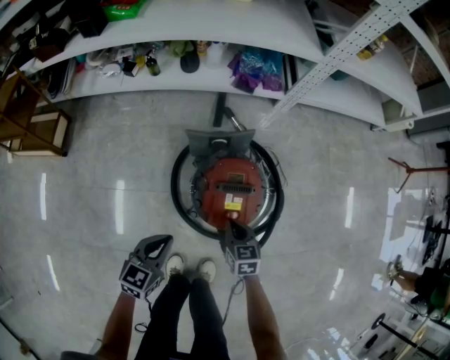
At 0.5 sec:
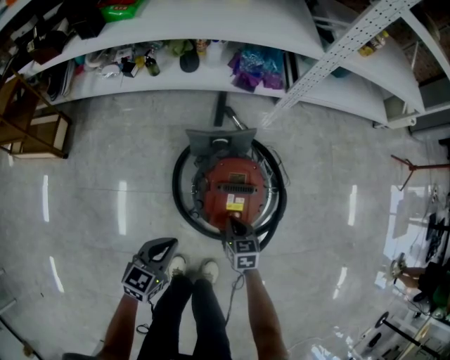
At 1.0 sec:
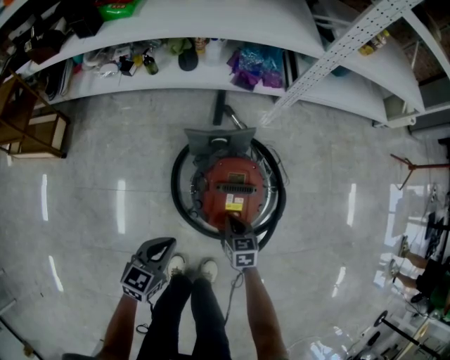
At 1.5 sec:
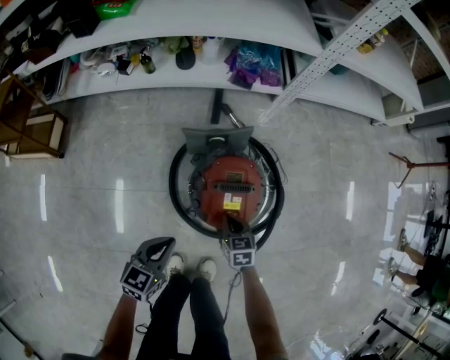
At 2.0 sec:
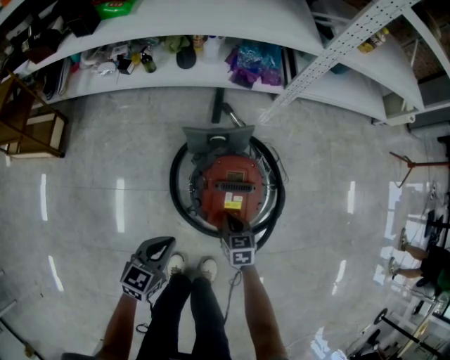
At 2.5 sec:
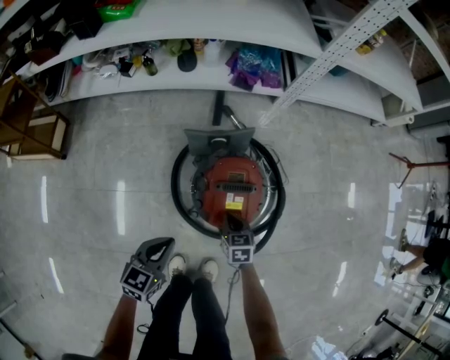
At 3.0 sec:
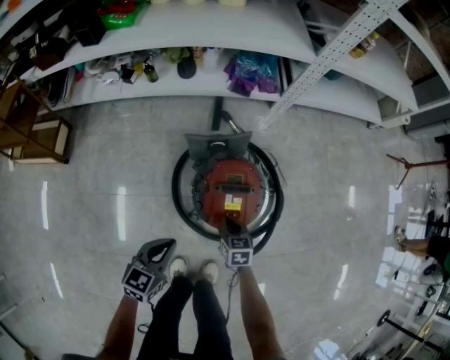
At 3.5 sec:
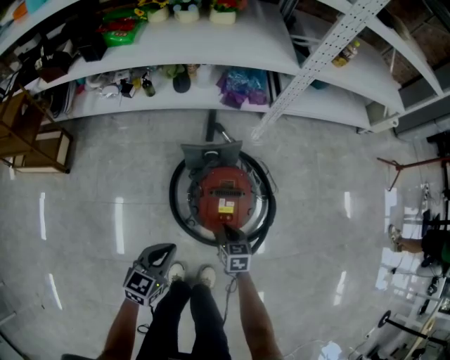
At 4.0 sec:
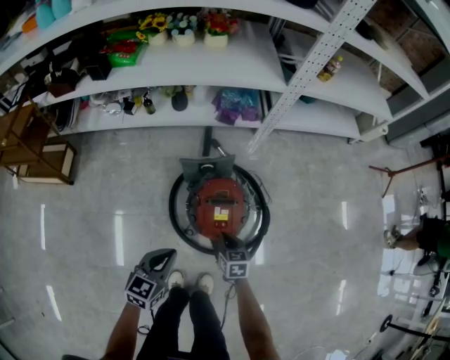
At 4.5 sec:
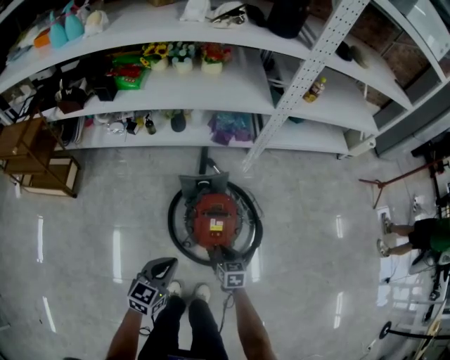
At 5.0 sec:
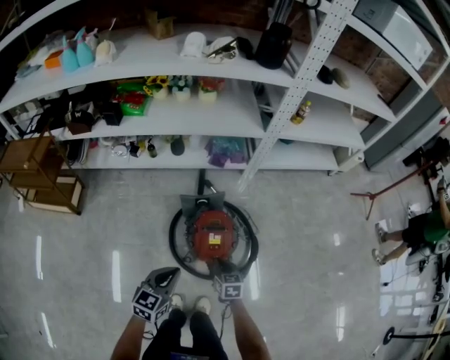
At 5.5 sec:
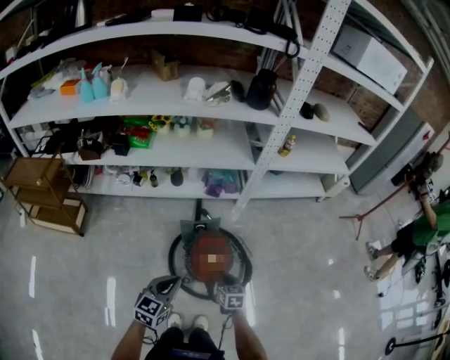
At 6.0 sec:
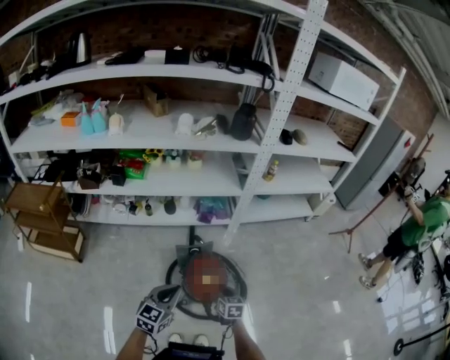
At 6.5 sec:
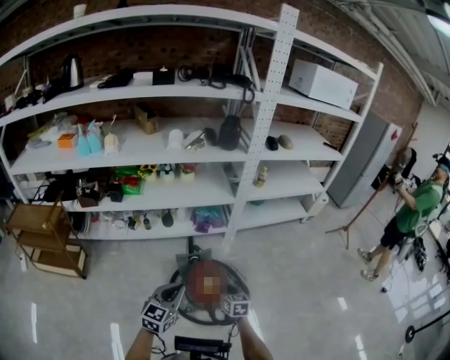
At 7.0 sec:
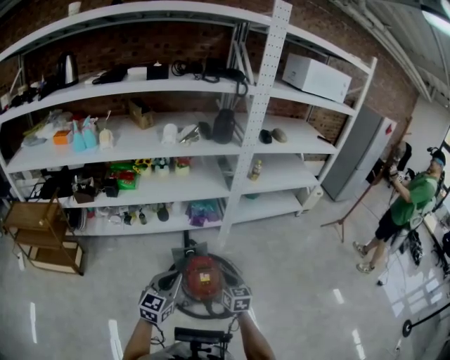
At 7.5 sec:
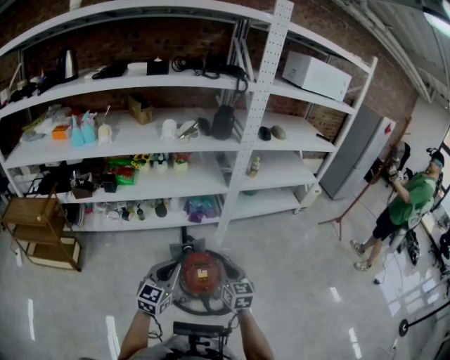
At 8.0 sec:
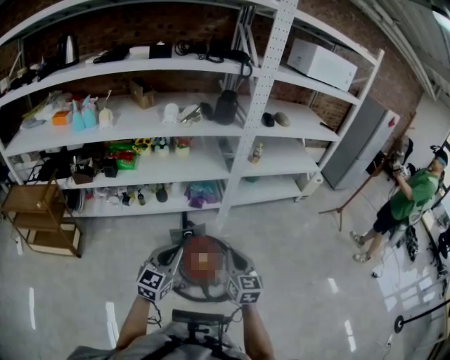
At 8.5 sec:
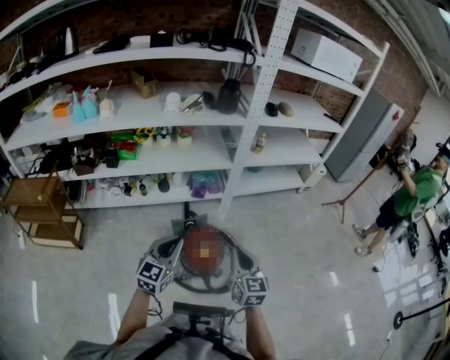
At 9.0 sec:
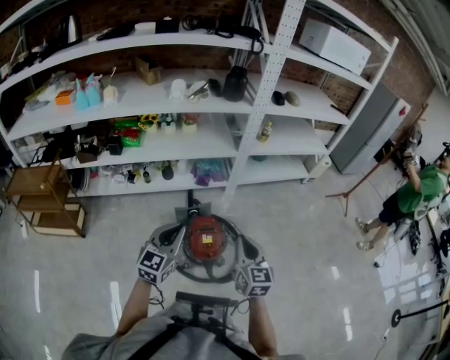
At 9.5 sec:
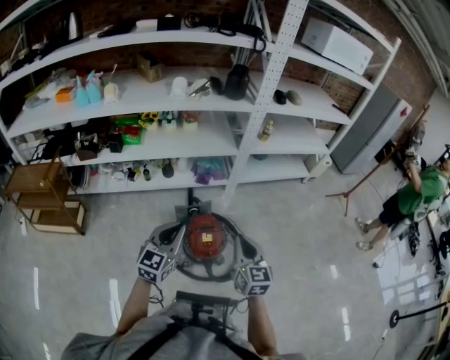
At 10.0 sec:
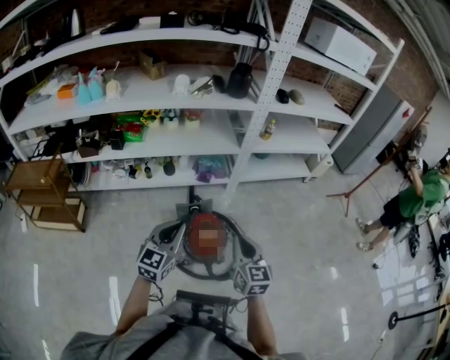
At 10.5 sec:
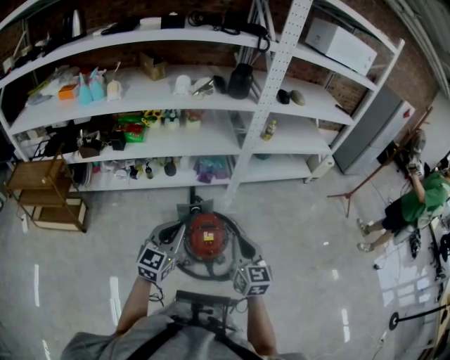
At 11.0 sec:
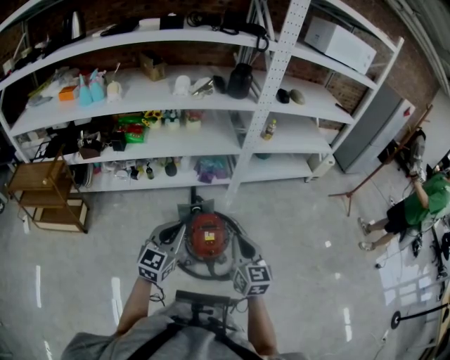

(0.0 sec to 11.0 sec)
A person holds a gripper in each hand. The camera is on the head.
0.0 sec - 2.0 sec: The right gripper travels downward by some 5 cm.
2.0 sec - 3.5 sec: The grippers both shift upward by some 5 cm.
3.5 sec - 5.5 sec: The two grippers go approximately 25 cm upward.
5.5 sec - 7.5 sec: The left gripper shifts about 15 cm upward. Meanwhile the right gripper goes roughly 25 cm upward, and changes its angle by some 30 degrees.
7.5 sec - 9.0 sec: The right gripper is displaced upward by approximately 5 cm.
9.0 sec - 11.0 sec: There are only small adjustments of the grippers.

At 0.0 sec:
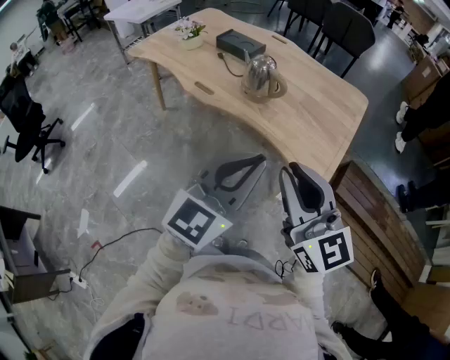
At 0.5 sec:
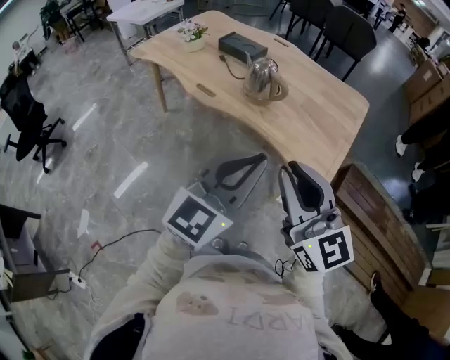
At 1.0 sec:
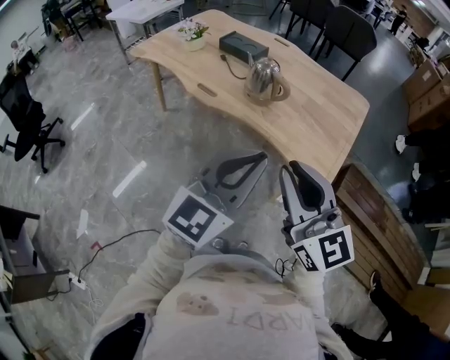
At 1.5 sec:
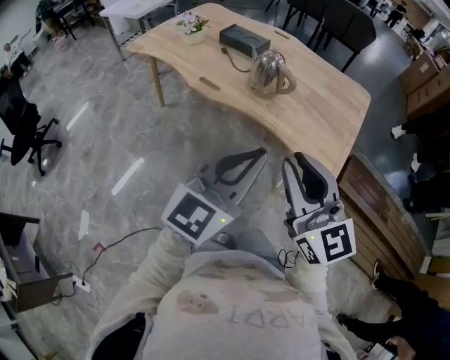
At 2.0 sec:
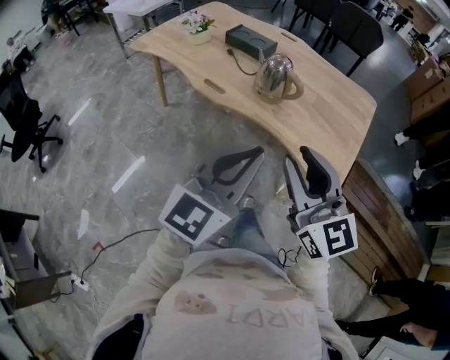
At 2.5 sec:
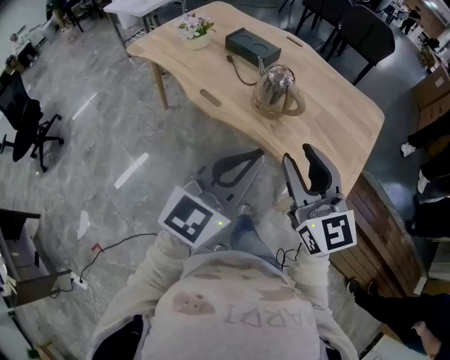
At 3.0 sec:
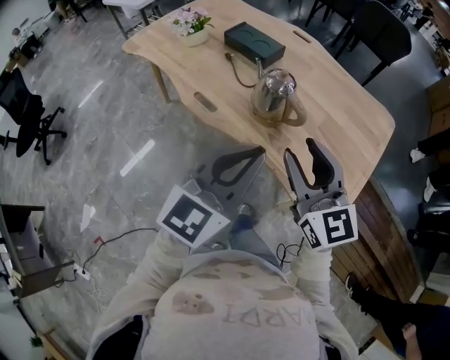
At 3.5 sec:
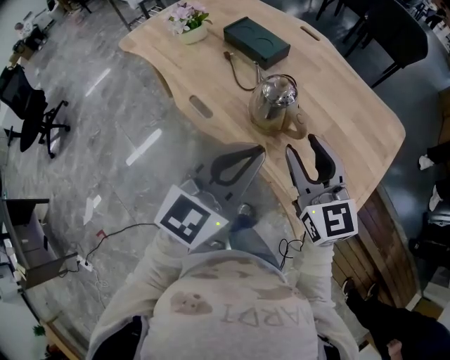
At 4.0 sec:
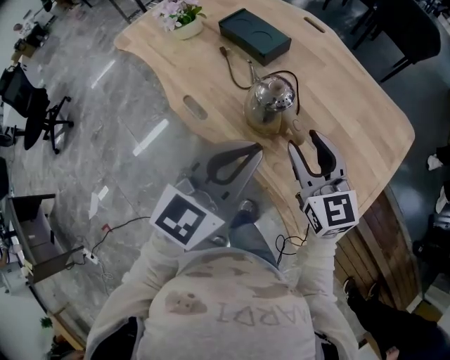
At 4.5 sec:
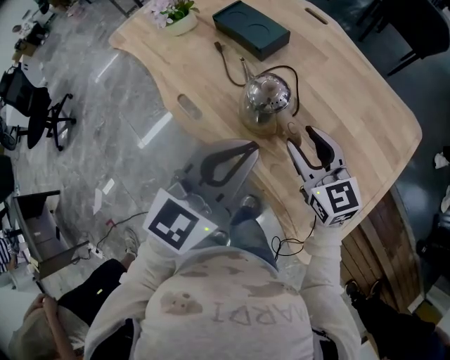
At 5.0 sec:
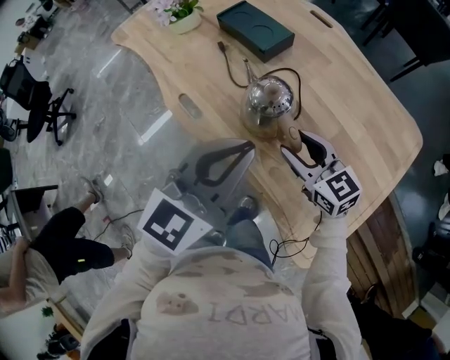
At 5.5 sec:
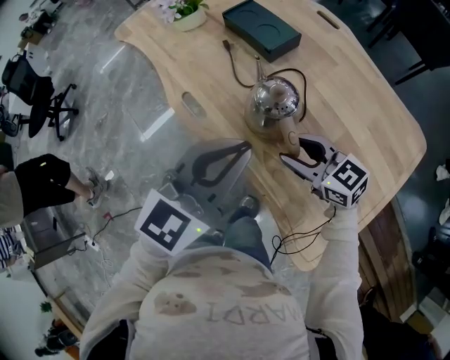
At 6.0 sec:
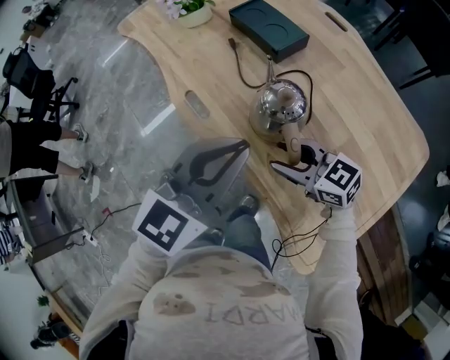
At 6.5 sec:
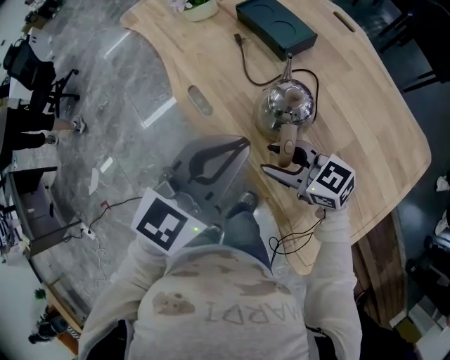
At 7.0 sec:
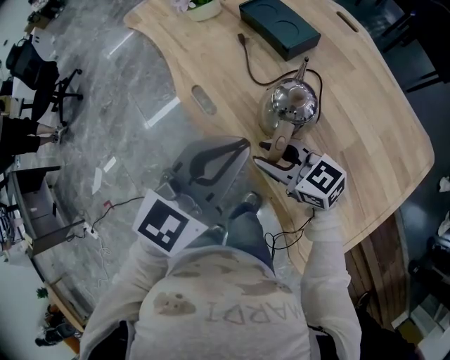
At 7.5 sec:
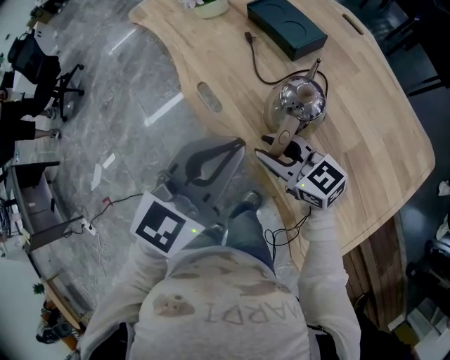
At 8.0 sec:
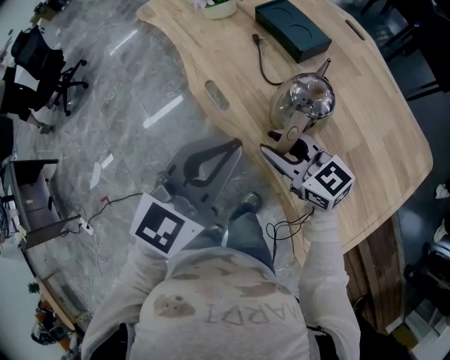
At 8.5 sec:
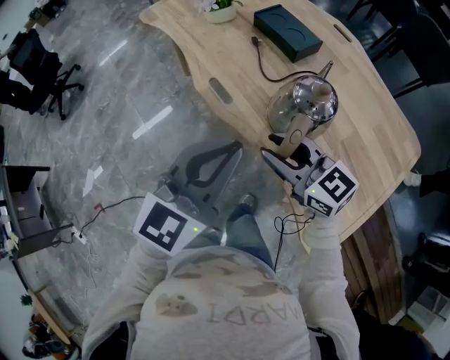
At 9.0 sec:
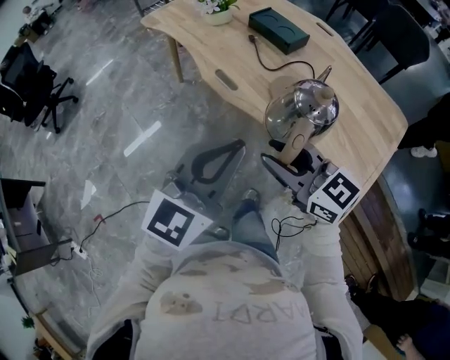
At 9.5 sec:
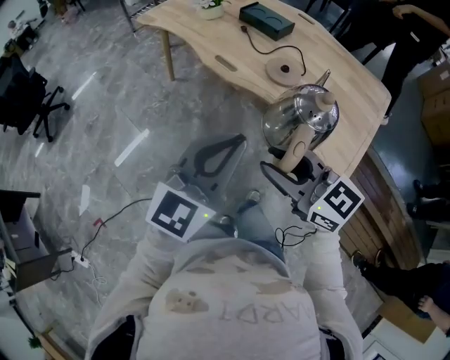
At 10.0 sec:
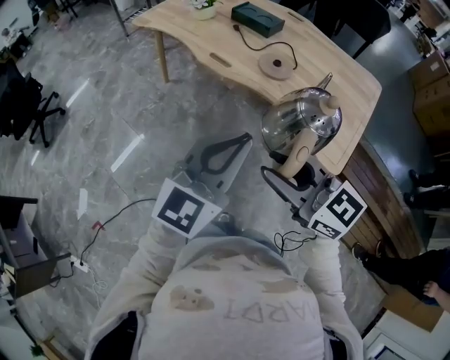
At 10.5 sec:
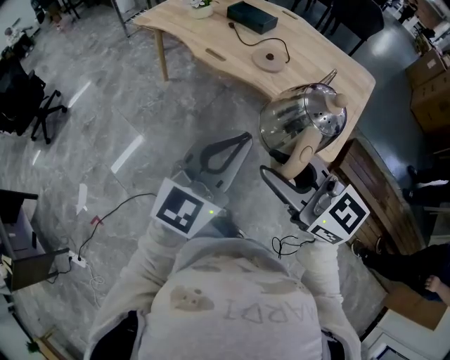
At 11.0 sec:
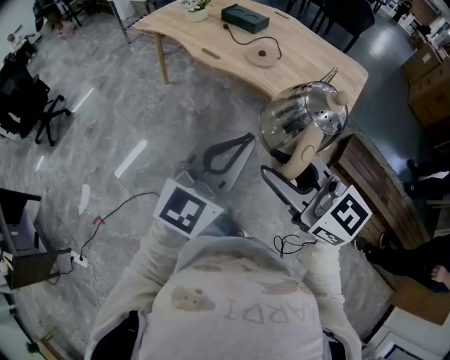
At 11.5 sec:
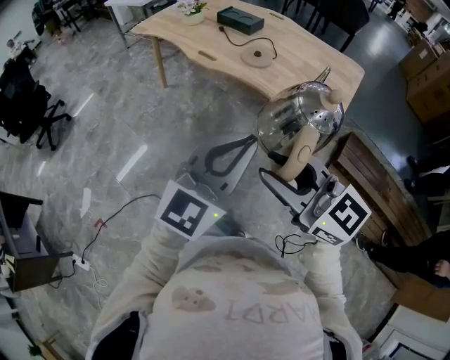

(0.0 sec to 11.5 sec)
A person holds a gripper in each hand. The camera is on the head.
0.0 sec - 2.0 sec: The left gripper is displaced to the left by some 5 cm, while the right gripper shifts some 10 cm to the left and forward.
2.0 sec - 4.0 sec: Both grippers move forward, roughly 35 cm.
4.0 sec - 6.0 sec: The right gripper goes about 10 cm downward, and turns by about 50 degrees. Meanwhile the left gripper ends up about 5 cm from where it was.
6.0 sec - 7.5 sec: The right gripper heads to the left, covering approximately 5 cm.
7.5 sec - 9.5 sec: The left gripper shifts some 35 cm backward and to the left. The right gripper goes about 40 cm backward, to the left and upward.
9.5 sec - 11.5 sec: Both grippers travel together backward, about 20 cm.

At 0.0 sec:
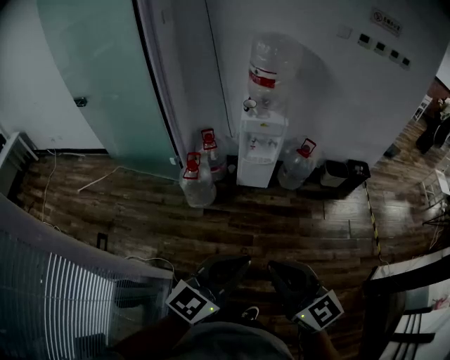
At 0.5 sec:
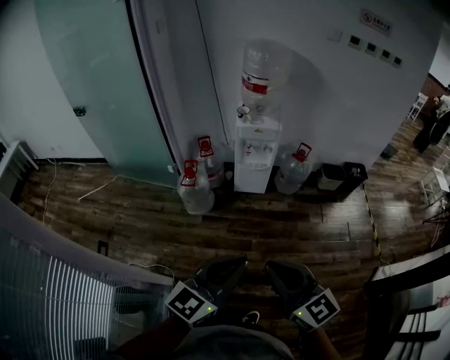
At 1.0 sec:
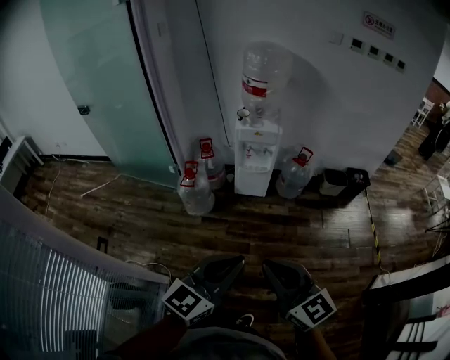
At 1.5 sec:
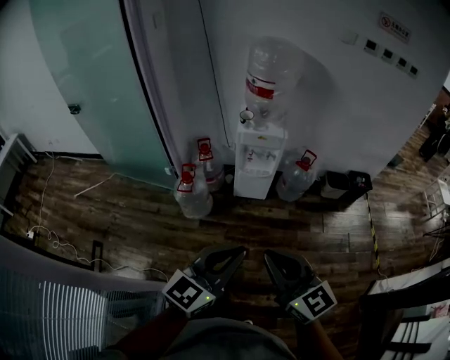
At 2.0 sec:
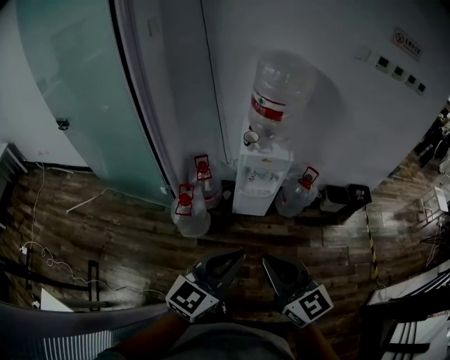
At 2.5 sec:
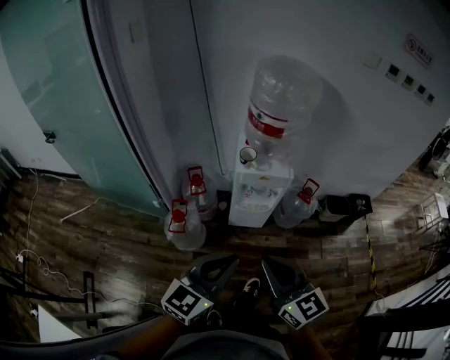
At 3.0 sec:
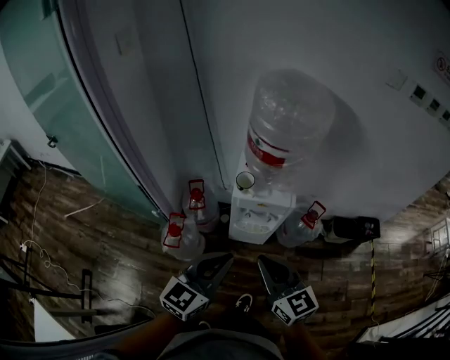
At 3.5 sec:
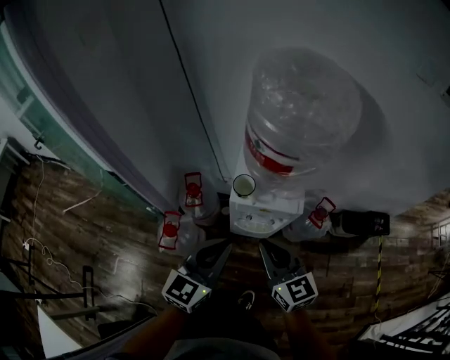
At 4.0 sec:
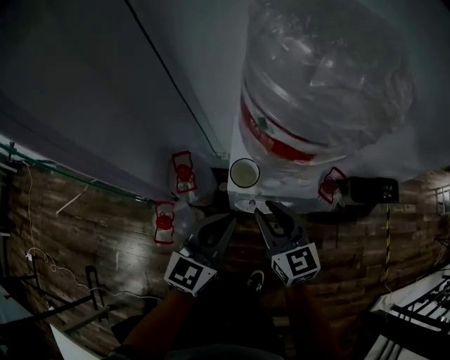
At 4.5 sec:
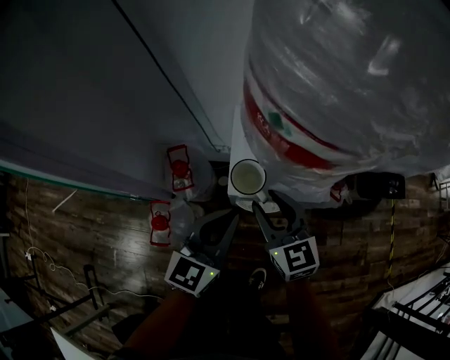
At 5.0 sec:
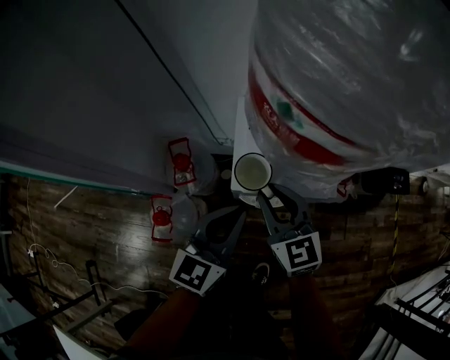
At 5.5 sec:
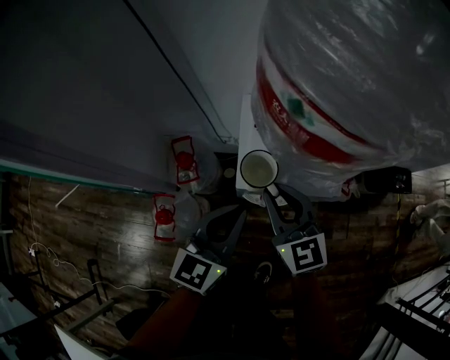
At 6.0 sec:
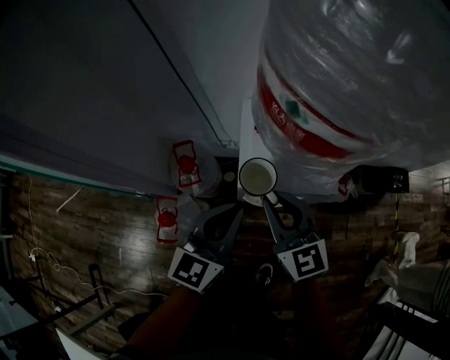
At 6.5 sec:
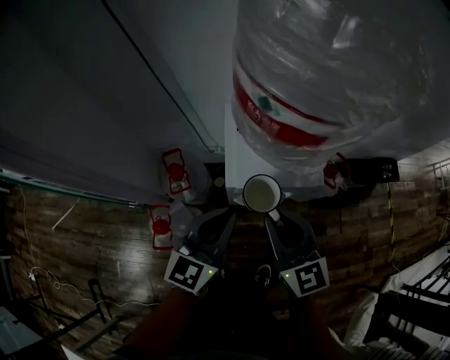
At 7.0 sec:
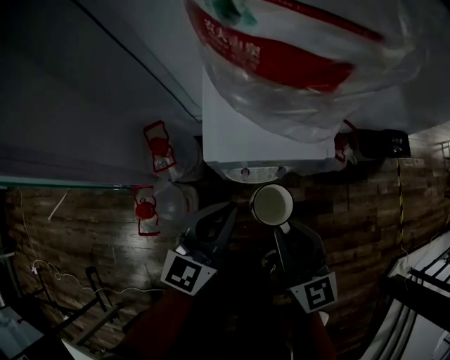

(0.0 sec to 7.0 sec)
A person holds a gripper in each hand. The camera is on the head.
0.0 sec - 2.0 sec: The two grippers go roughly 25 cm forward.
2.0 sec - 3.5 sec: The two grippers go some 40 cm forward.
3.5 sec - 5.0 sec: The left gripper is displaced downward and forward by approximately 20 cm, while the right gripper travels forward and downward by approximately 20 cm, and opens up.
5.0 sec - 7.0 sec: The left gripper is displaced downward by roughly 5 cm; the right gripper heads backward and to the right, covering some 15 cm.
